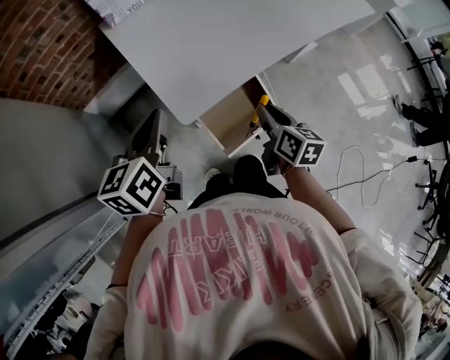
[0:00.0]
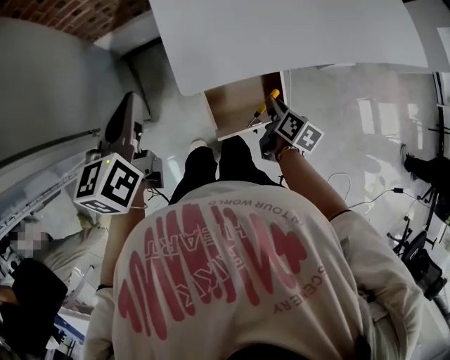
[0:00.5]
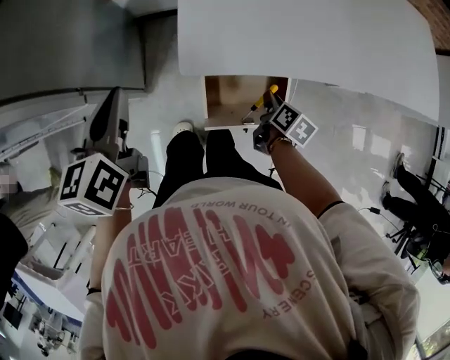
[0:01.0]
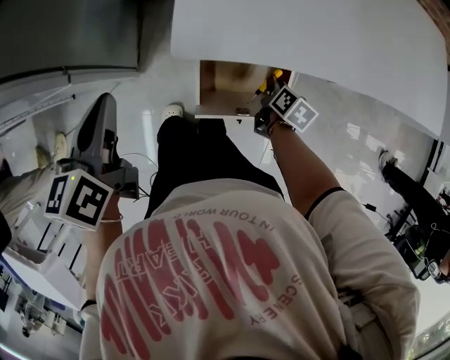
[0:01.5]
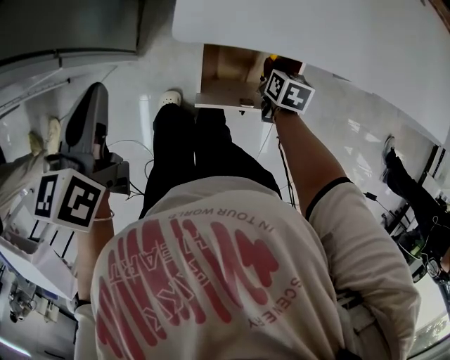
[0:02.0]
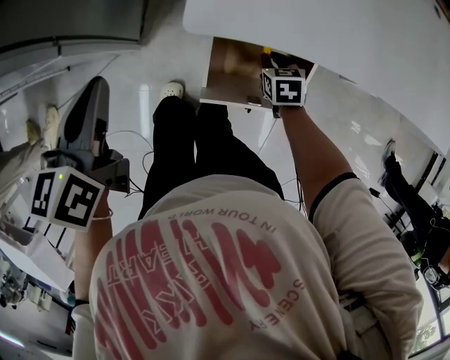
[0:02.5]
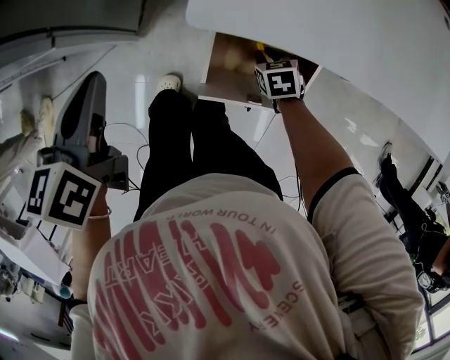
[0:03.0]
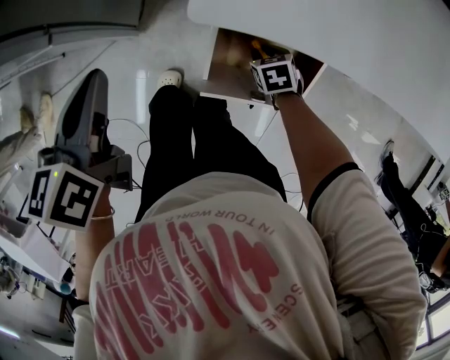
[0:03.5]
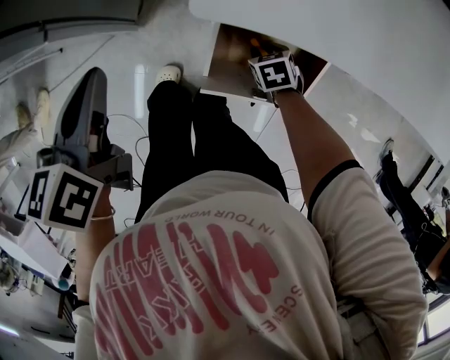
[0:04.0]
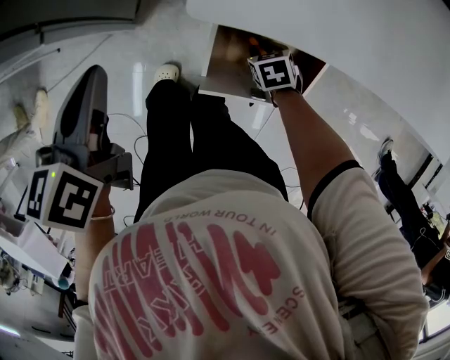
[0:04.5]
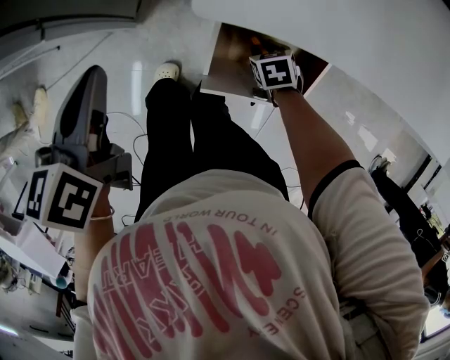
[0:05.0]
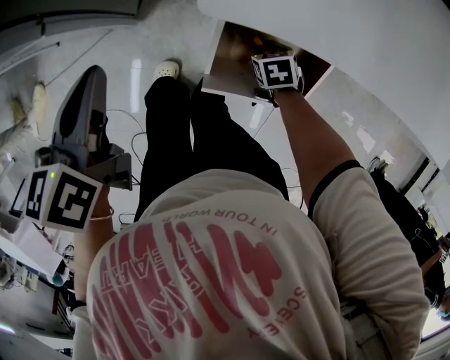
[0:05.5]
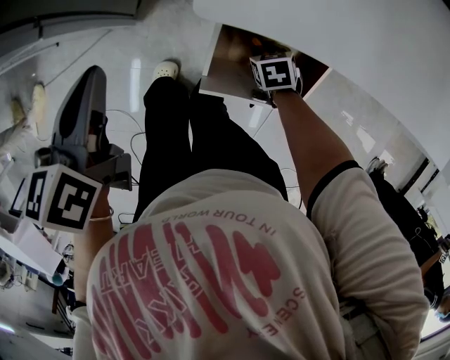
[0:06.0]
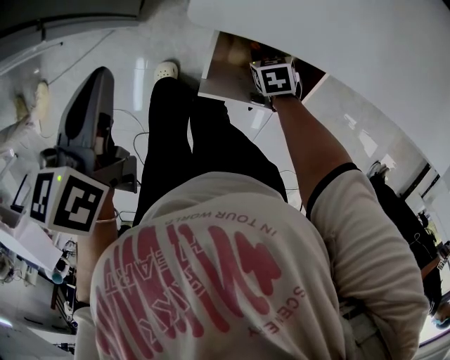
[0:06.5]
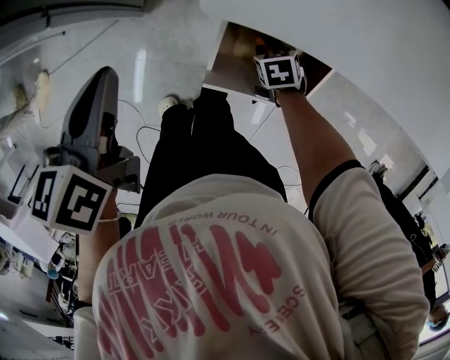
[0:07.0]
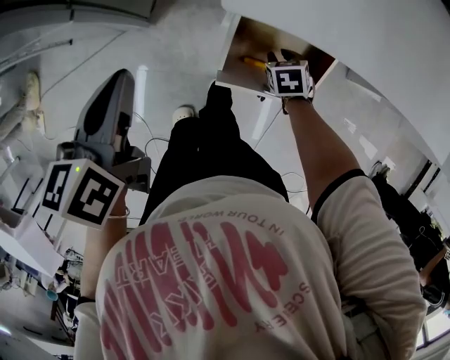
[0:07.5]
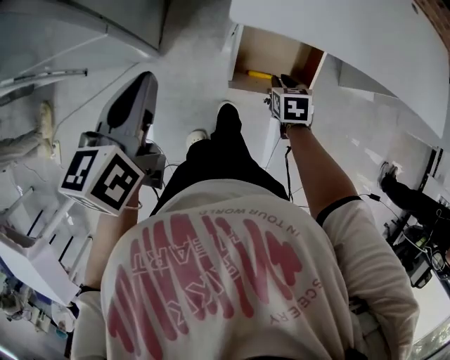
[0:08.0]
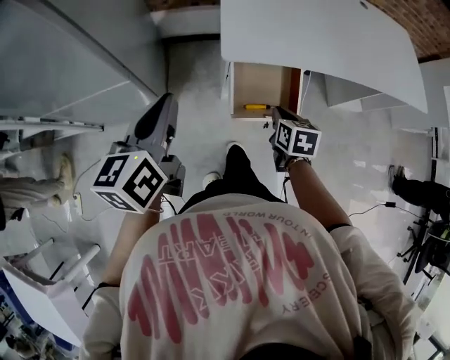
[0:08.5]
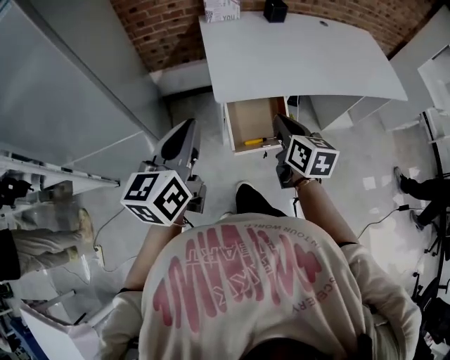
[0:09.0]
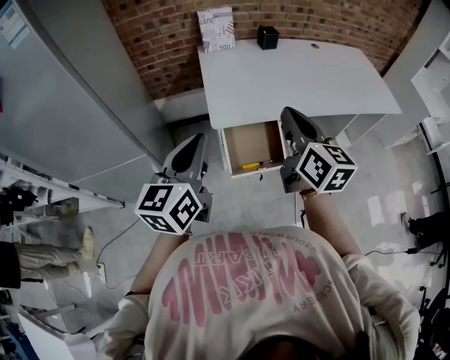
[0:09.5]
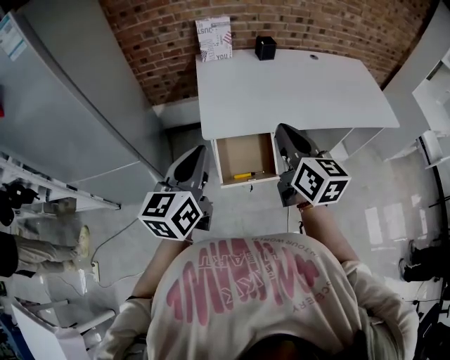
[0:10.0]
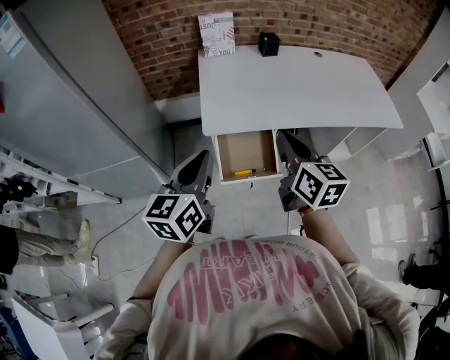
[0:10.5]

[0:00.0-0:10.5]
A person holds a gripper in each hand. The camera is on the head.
0:00.0 to 0:02.0: The left gripper ends up about 15 cm from where it was, and rotates roughly 40 degrees. The right gripper moves downward, roughly 25 cm, and swivels about 40 degrees.
0:02.0 to 0:04.0: The left gripper shifts by some 5 cm; the right gripper is displaced to the left and downward by about 10 cm, and swivels roughly 40 degrees.
0:04.0 to 0:06.5: The grippers stay close to where they were, moving slightly.
0:06.5 to 0:08.5: The right gripper travels upward and backward by some 30 cm, changes its angle by about 40 degrees, and closes. Meanwhile the left gripper goes about 20 cm upward and backward, and changes its angle by about 30 degrees.
0:08.5 to 0:10.5: The left gripper goes roughly 20 cm to the right and upward; the right gripper is displaced upward by about 30 cm, and points its fingers about 40 degrees further upward.

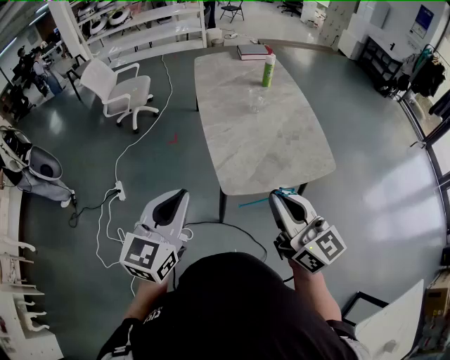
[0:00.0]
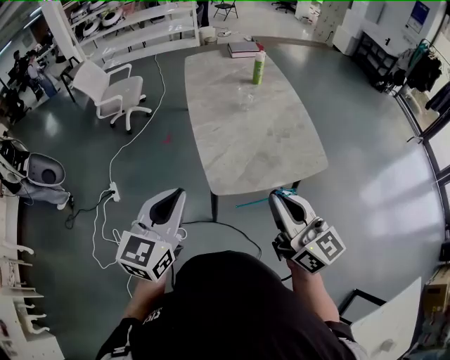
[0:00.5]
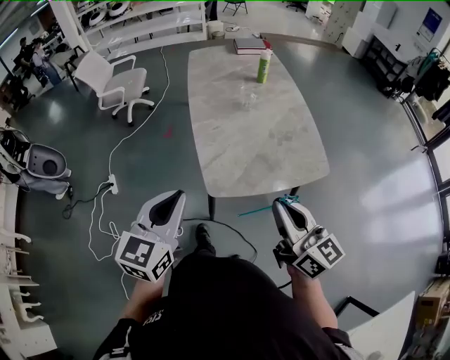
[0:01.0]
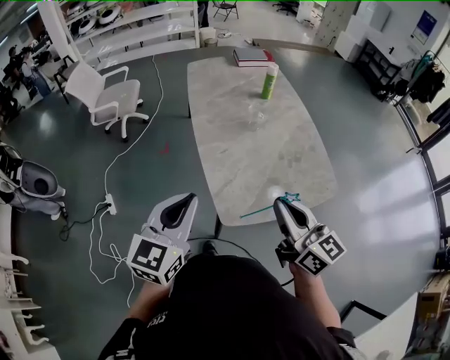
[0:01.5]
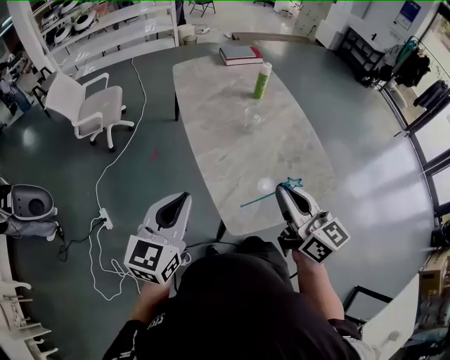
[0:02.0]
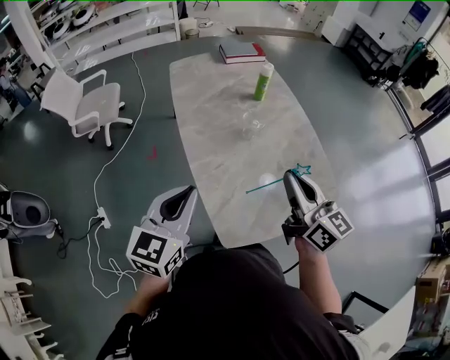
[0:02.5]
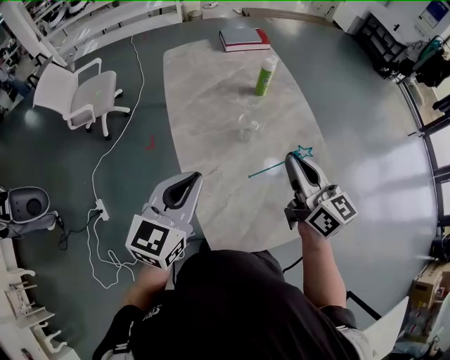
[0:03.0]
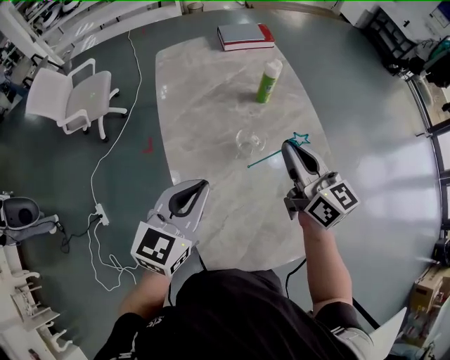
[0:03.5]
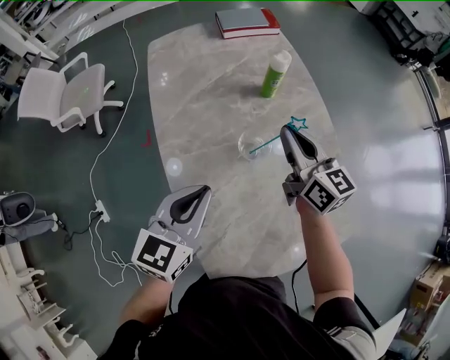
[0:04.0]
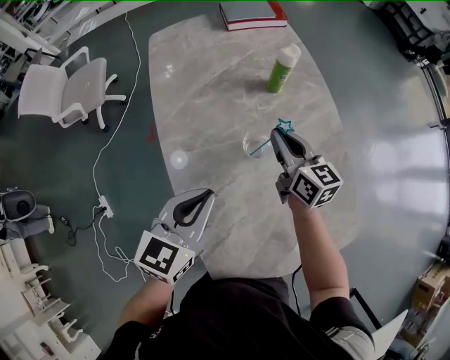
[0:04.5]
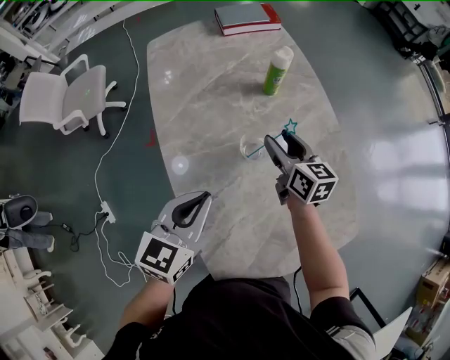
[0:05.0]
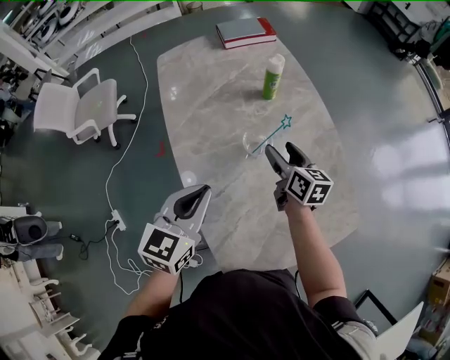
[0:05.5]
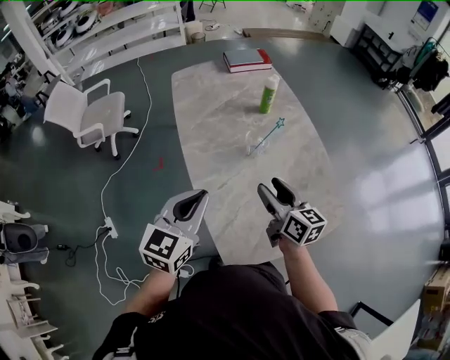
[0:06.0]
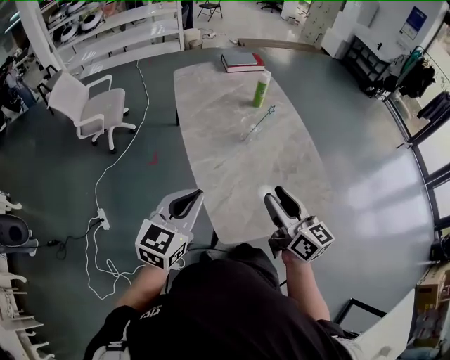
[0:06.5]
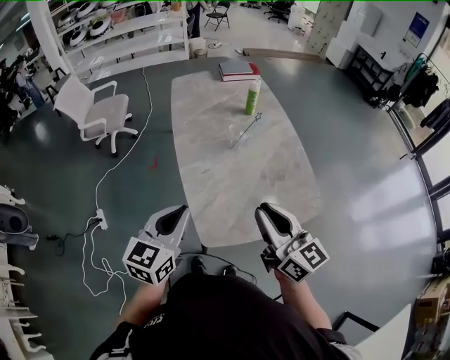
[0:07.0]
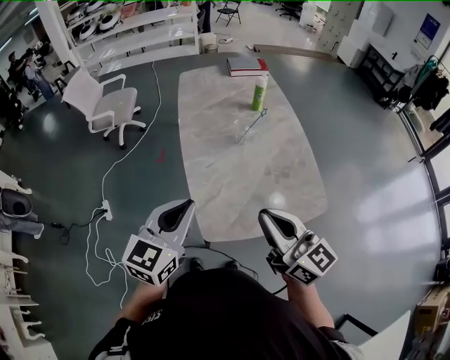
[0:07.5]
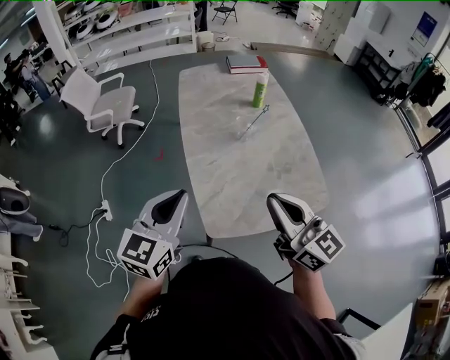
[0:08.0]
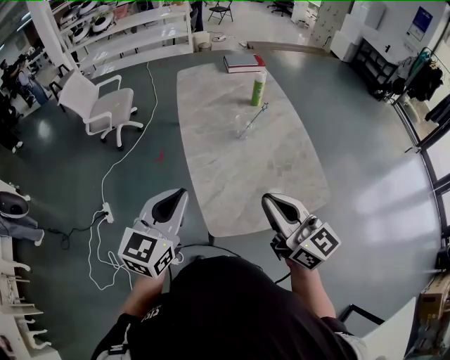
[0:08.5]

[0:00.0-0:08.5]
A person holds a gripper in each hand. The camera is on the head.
0:00.0 to 0:02.0: The grippers both shift forward by approximately 20 cm.
0:02.0 to 0:04.0: The left gripper is displaced forward and to the right by about 35 cm. Meanwhile the right gripper travels forward by roughly 40 cm.
0:04.0 to 0:06.5: Both grippers move backward, about 35 cm. The right gripper opens up.
0:06.5 to 0:08.5: The grippers both shift upward and backward by some 10 cm. The right gripper closes up.

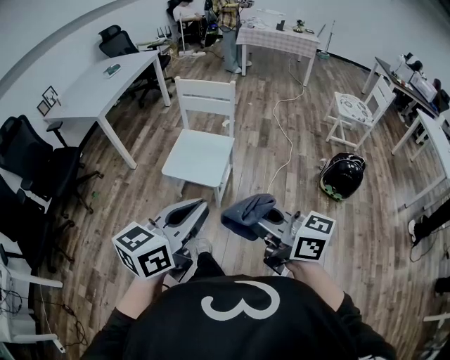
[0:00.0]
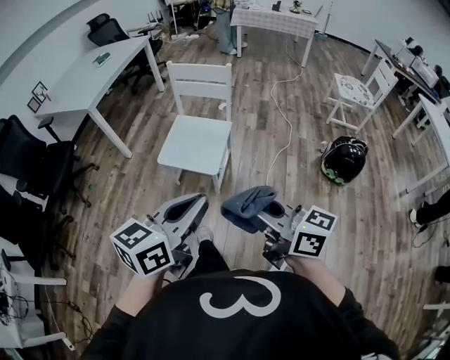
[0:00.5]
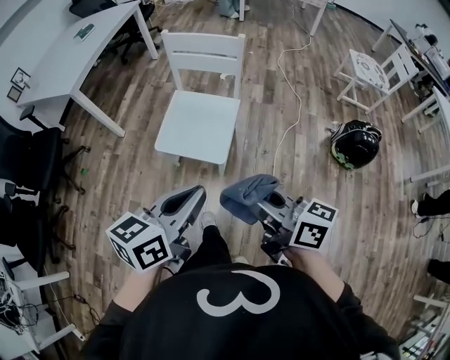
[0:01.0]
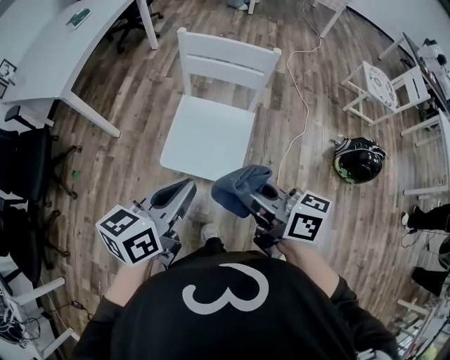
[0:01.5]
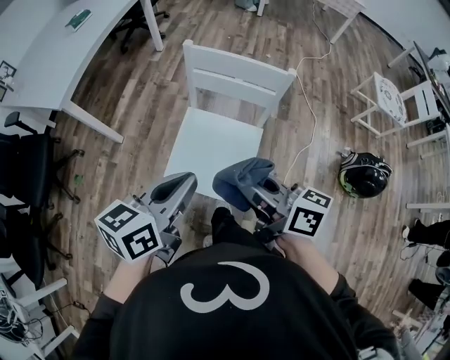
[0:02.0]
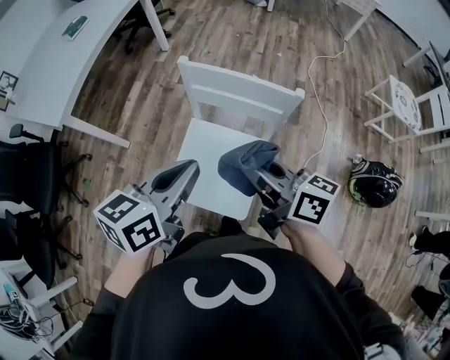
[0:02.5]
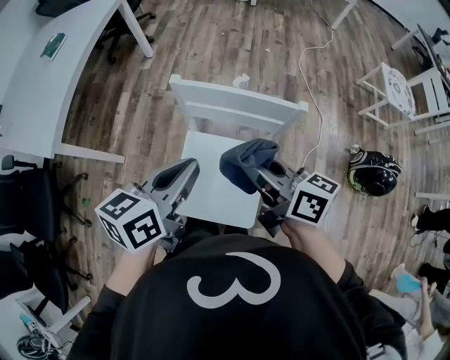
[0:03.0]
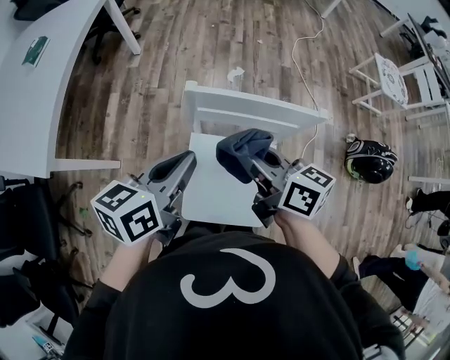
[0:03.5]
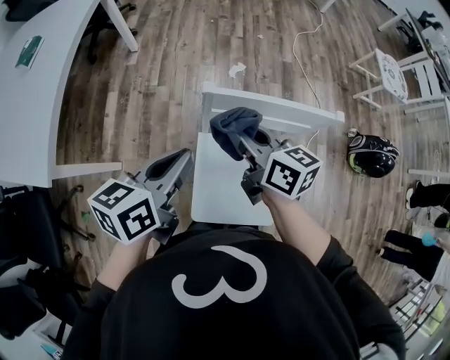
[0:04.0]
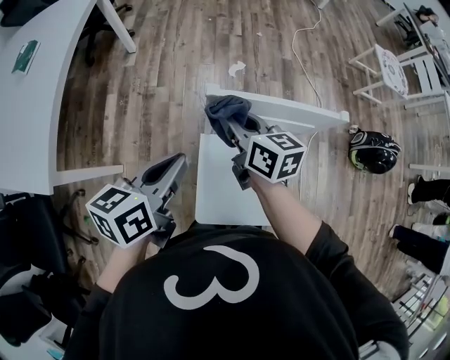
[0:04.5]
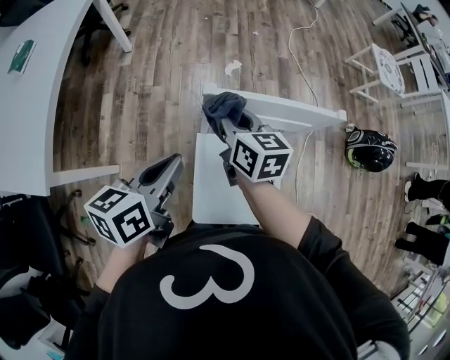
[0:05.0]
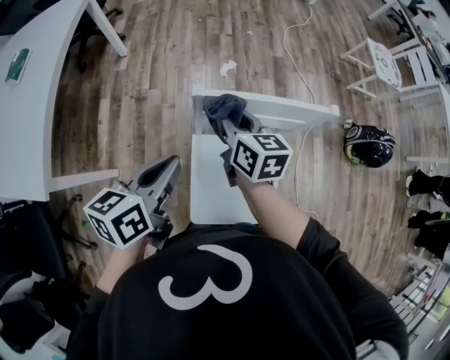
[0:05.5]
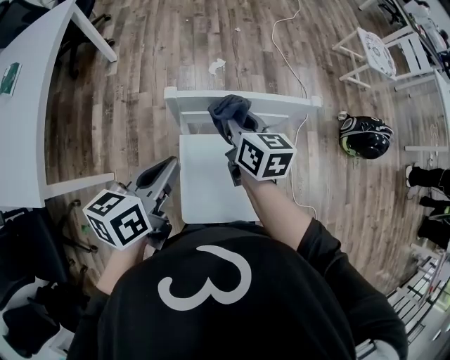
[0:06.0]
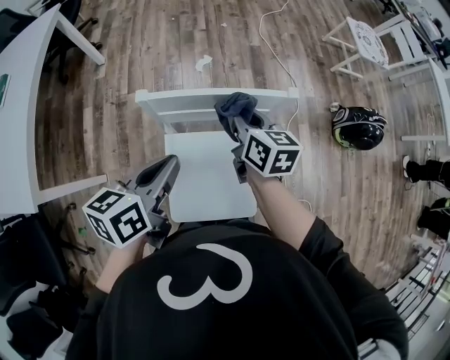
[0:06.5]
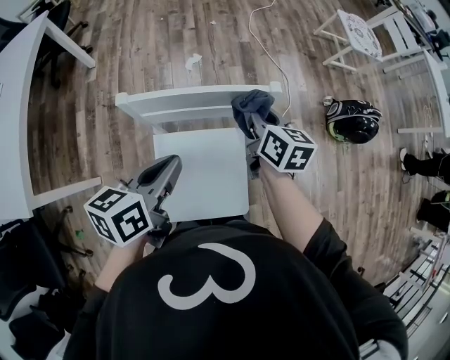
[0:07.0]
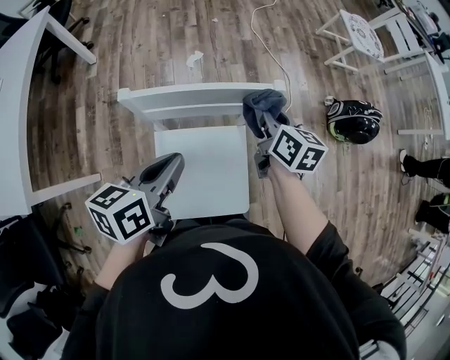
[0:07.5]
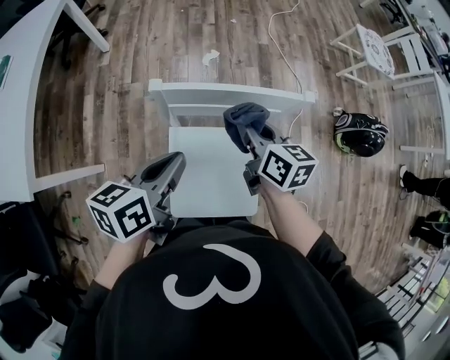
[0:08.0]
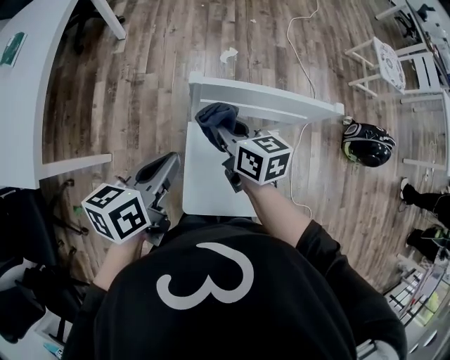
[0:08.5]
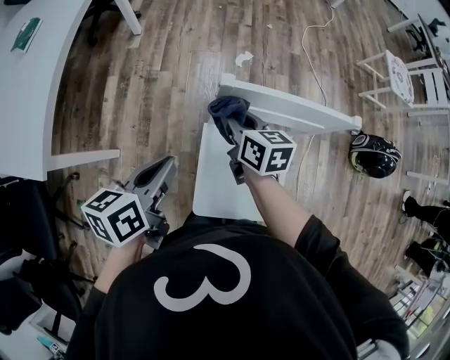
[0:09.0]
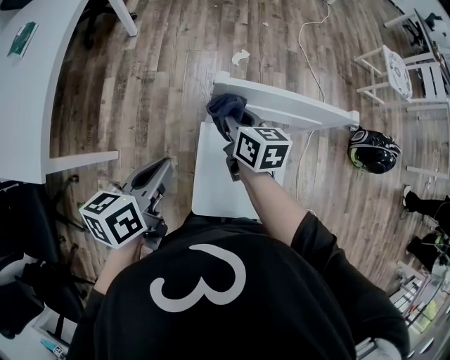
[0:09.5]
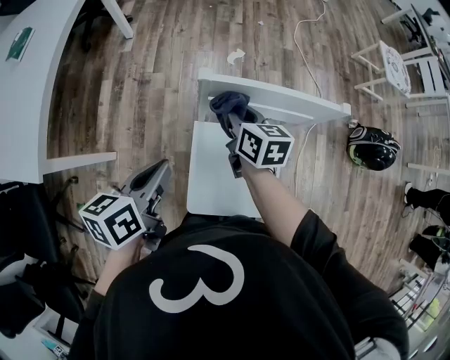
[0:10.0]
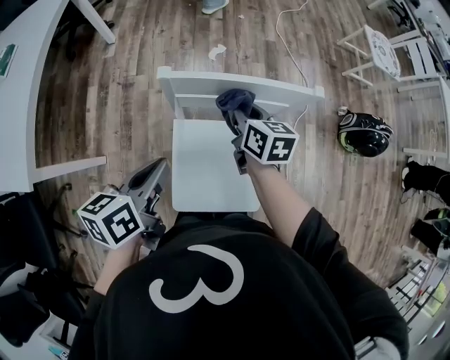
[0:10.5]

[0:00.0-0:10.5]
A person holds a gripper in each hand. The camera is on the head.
0:00.0 to 0:02.0: The pair of grippers is taken forward, about 50 cm. The right gripper rotates some 20 degrees.
0:02.0 to 0:04.0: The right gripper is displaced forward by about 30 cm, and changes its angle by some 20 degrees. The left gripper heads forward and to the left, covering some 30 cm.
0:04.0 to 0:06.5: The left gripper shifts roughly 10 cm to the right, while the right gripper moves to the right, roughly 15 cm, and rotates approximately 20 degrees.
0:06.5 to 0:08.5: The left gripper travels to the left by about 10 cm. Meanwhile the right gripper goes roughly 15 cm to the left and backward.
0:08.5 to 0:10.5: The right gripper travels to the right by roughly 10 cm.
